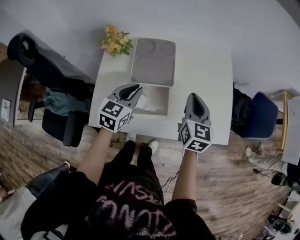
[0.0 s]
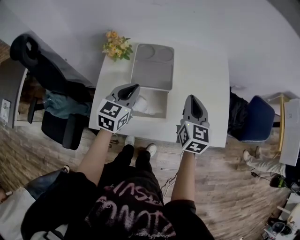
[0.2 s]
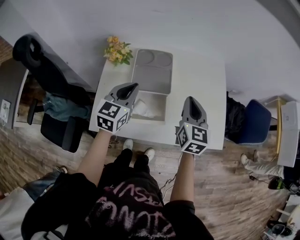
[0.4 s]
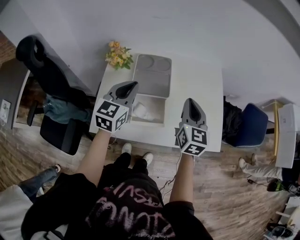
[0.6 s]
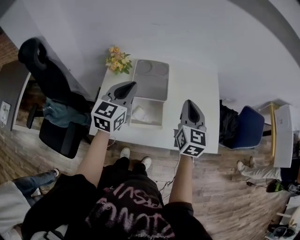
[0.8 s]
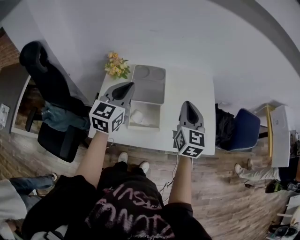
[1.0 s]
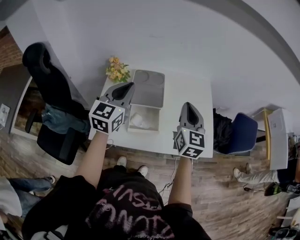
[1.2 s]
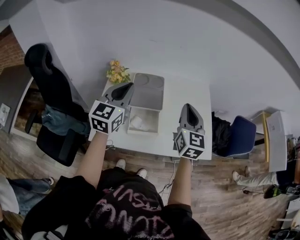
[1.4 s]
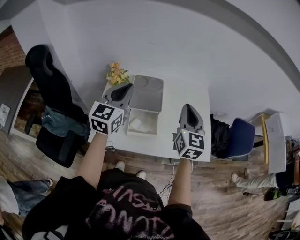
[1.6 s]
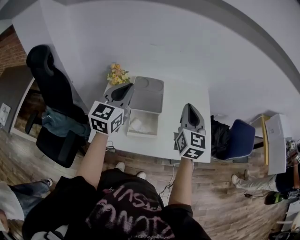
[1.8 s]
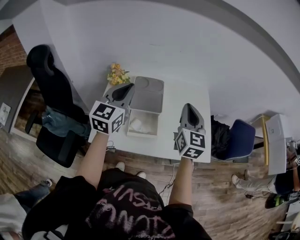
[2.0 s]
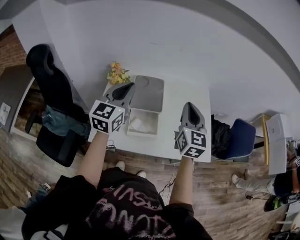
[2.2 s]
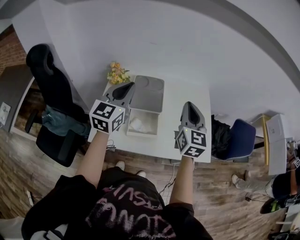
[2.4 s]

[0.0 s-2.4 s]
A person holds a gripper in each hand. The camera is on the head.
0.0 to 1.2 s: The grippers both shift upward by approximately 15 cm. The left gripper turns by some 20 degrees.
1.2 to 2.4 s: The grippers make only small movements.

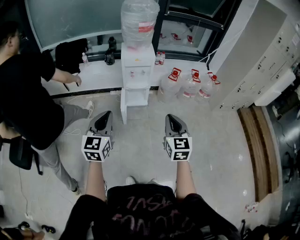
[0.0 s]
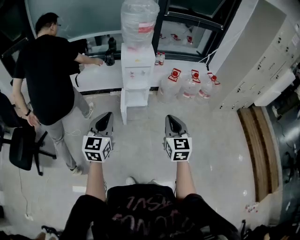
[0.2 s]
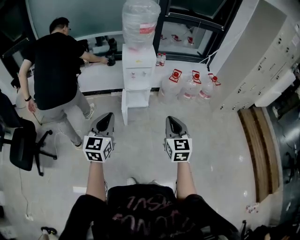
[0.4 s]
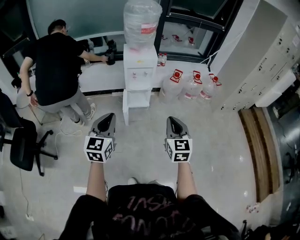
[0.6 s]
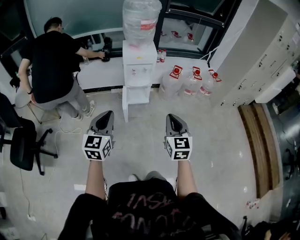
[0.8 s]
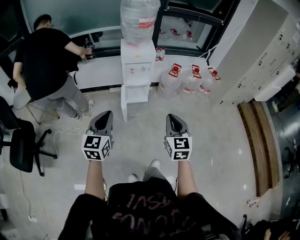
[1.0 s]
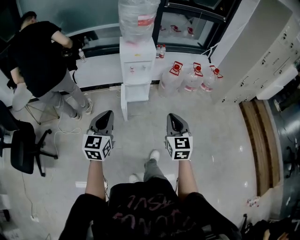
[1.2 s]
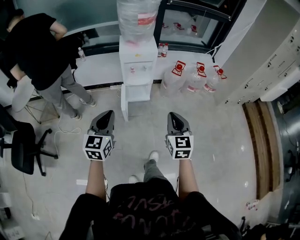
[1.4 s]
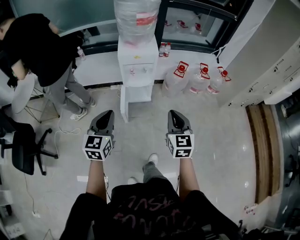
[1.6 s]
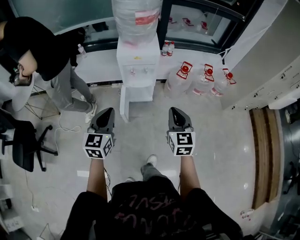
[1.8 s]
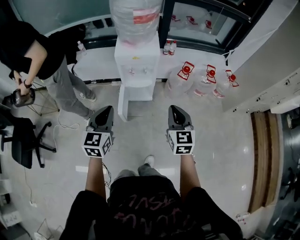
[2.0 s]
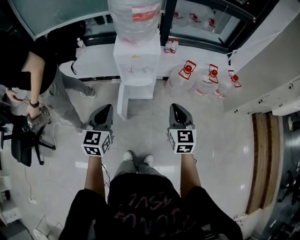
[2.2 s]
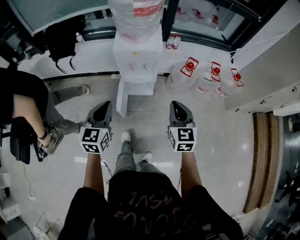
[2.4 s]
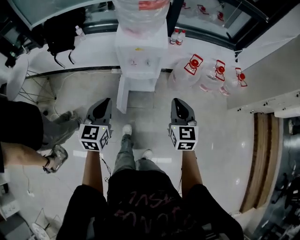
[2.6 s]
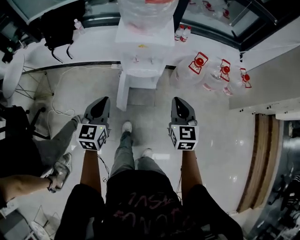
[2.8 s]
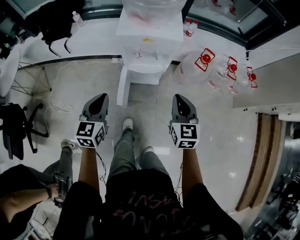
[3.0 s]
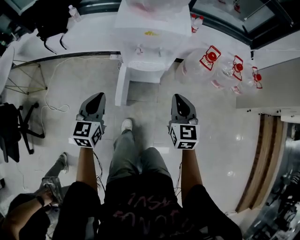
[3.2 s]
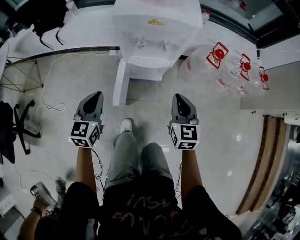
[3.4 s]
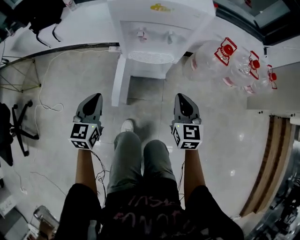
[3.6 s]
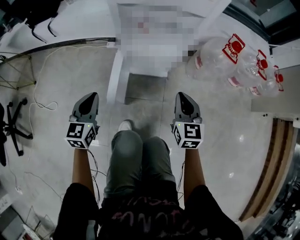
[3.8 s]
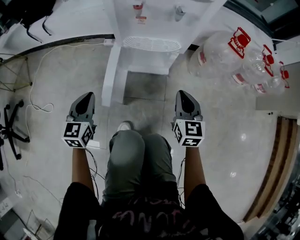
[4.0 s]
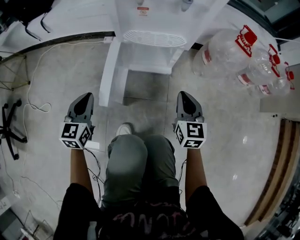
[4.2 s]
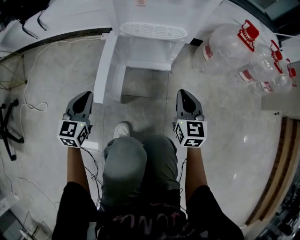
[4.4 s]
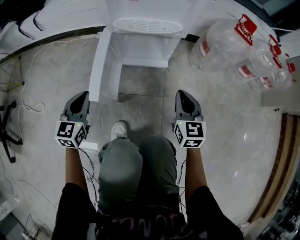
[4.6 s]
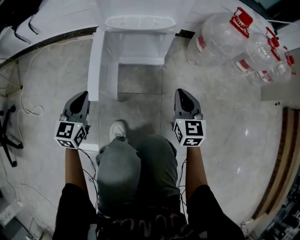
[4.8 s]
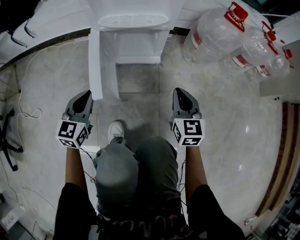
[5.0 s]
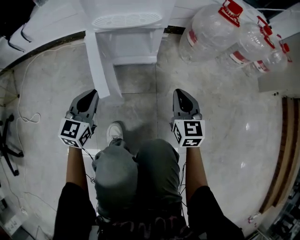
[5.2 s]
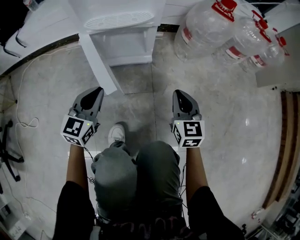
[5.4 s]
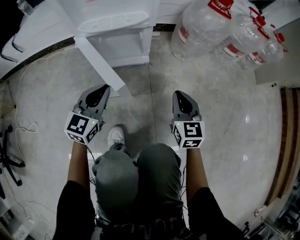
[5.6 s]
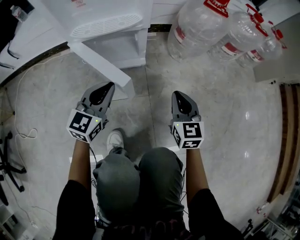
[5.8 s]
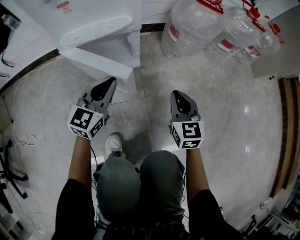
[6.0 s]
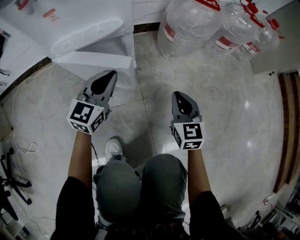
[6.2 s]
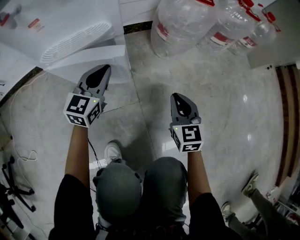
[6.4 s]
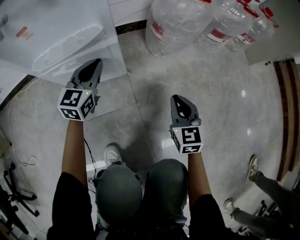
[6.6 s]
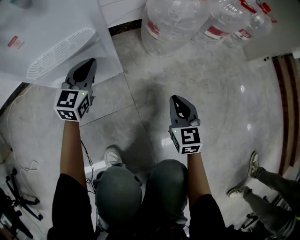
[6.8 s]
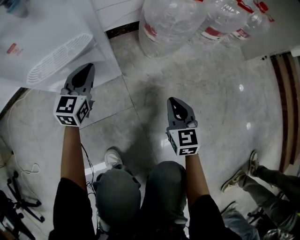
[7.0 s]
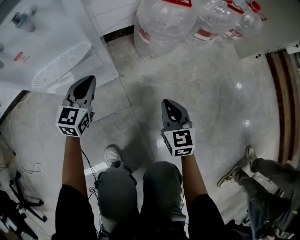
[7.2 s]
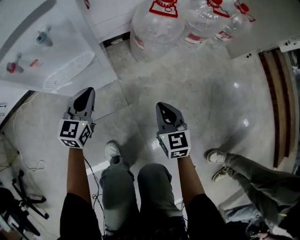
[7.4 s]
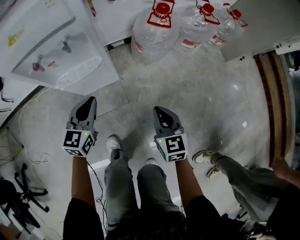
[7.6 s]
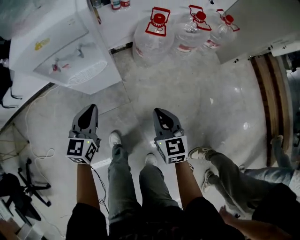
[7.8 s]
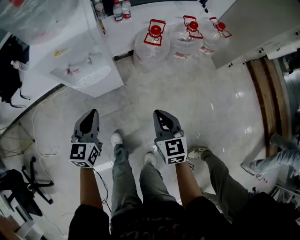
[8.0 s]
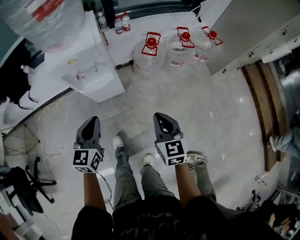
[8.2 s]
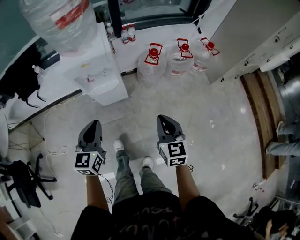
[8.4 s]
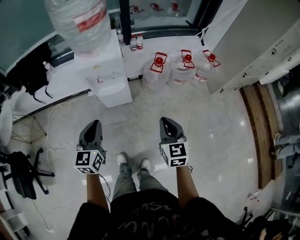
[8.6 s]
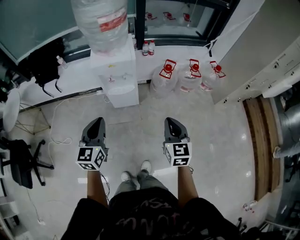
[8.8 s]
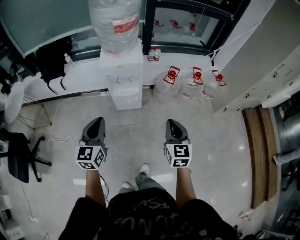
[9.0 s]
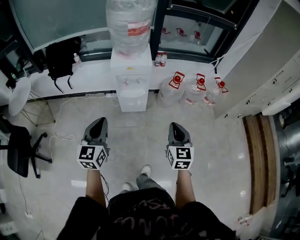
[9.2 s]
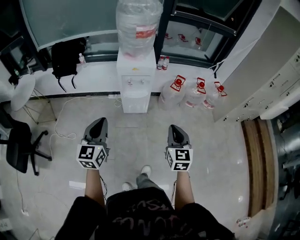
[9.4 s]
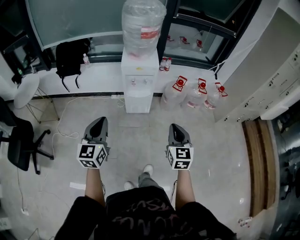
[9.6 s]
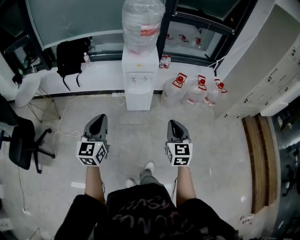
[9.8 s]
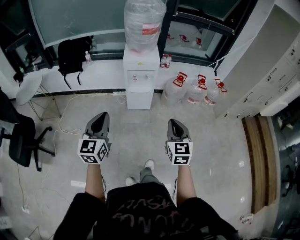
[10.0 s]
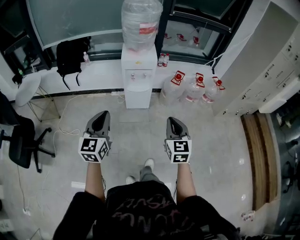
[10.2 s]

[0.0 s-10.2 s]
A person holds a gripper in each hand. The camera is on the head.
0.0 to 1.4 s: Both grippers travel together forward, approximately 10 cm.
1.4 to 3.0 s: Both grippers travel together forward and downward, roughly 35 cm.
3.0 to 4.4 s: The two grippers go about 50 cm downward.
4.4 to 5.8 s: The left gripper heads to the right and forward, covering some 20 cm, and changes its angle by about 30 degrees. The right gripper travels to the right and downward by some 10 cm.
5.8 to 7.2 s: The right gripper shifts about 5 cm to the right. Meanwhile the left gripper is displaced forward by about 15 cm.
7.2 to 8.8 s: The left gripper goes approximately 80 cm upward and backward, and swivels roughly 30 degrees. The right gripper is displaced upward by roughly 70 cm.
8.8 to 10.2 s: The right gripper travels backward, to the left and upward by some 25 cm. Meanwhile the left gripper shifts about 25 cm backward and to the left.

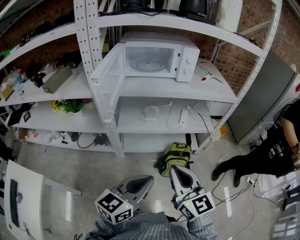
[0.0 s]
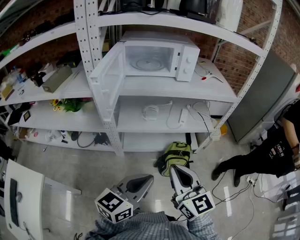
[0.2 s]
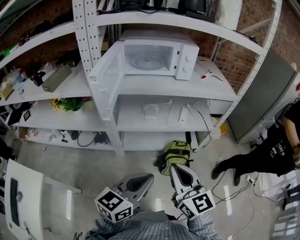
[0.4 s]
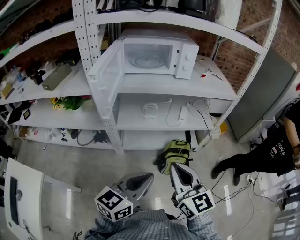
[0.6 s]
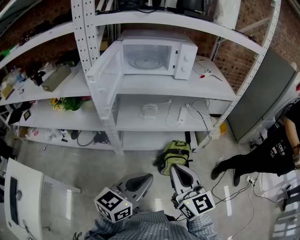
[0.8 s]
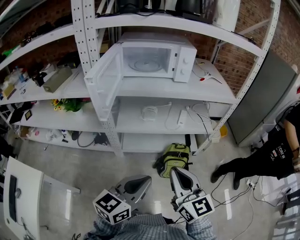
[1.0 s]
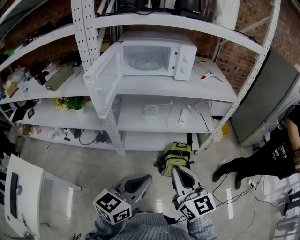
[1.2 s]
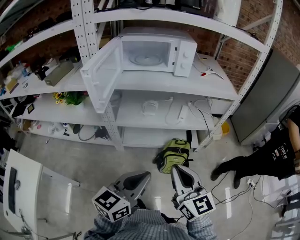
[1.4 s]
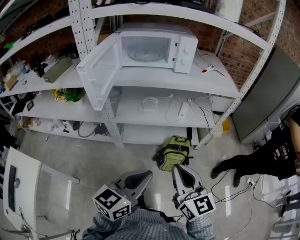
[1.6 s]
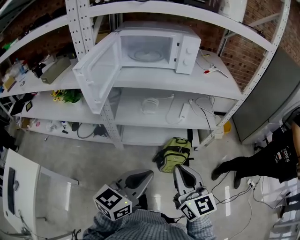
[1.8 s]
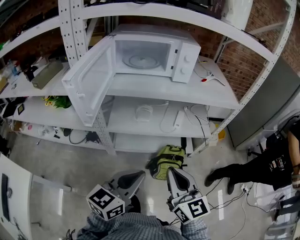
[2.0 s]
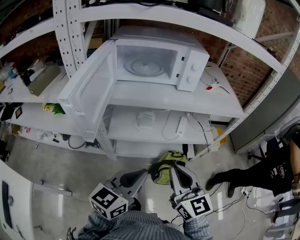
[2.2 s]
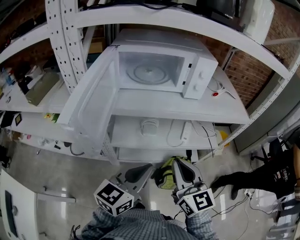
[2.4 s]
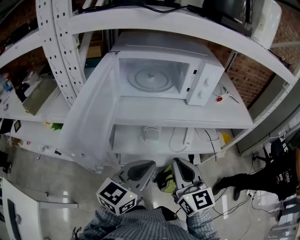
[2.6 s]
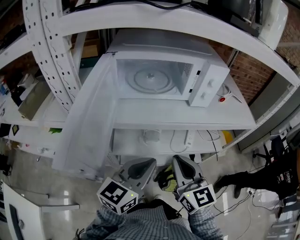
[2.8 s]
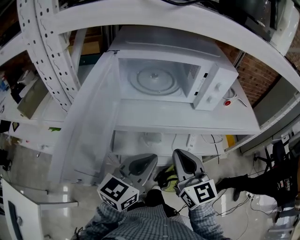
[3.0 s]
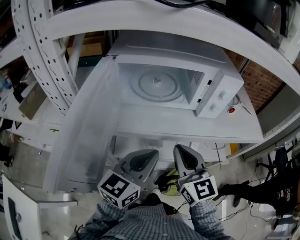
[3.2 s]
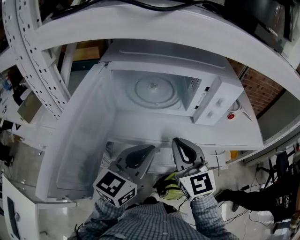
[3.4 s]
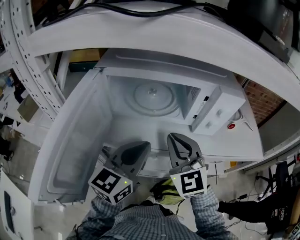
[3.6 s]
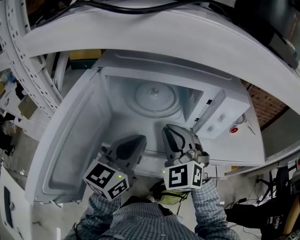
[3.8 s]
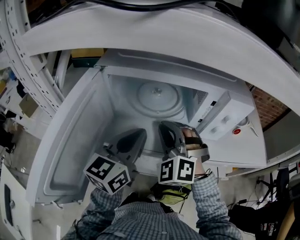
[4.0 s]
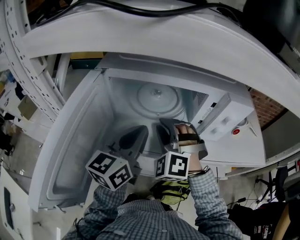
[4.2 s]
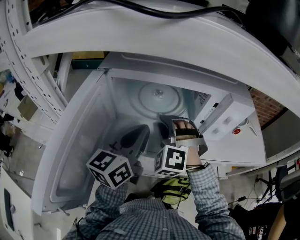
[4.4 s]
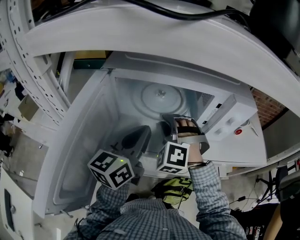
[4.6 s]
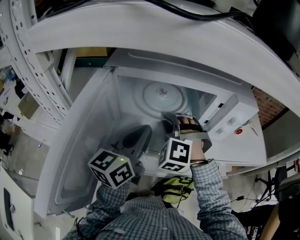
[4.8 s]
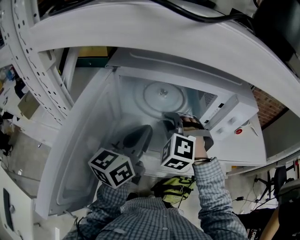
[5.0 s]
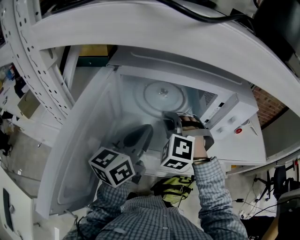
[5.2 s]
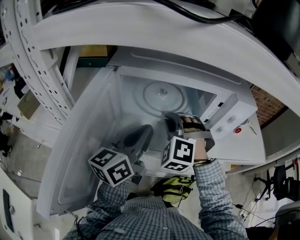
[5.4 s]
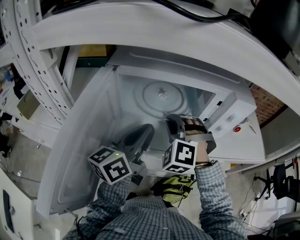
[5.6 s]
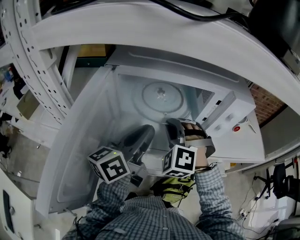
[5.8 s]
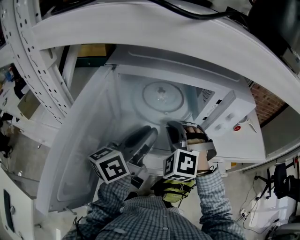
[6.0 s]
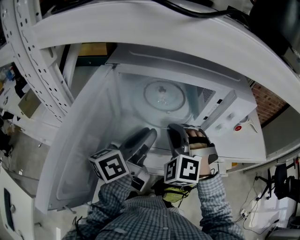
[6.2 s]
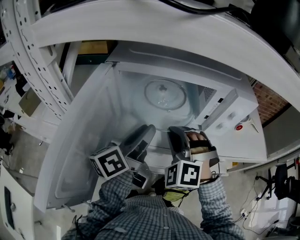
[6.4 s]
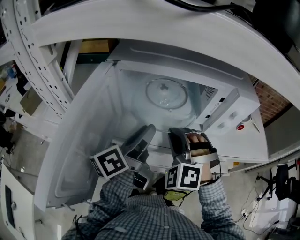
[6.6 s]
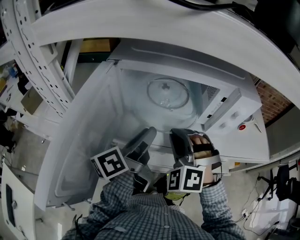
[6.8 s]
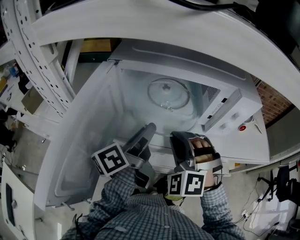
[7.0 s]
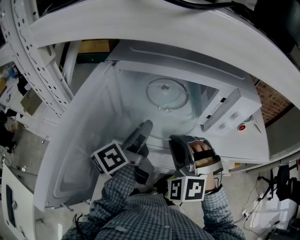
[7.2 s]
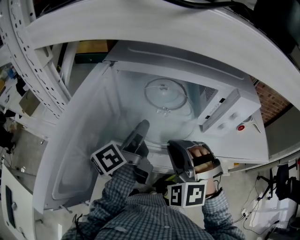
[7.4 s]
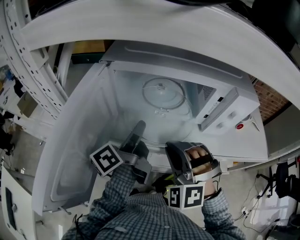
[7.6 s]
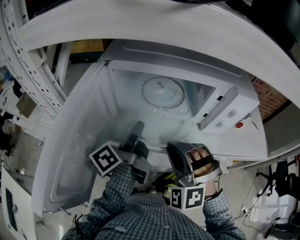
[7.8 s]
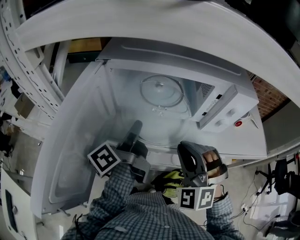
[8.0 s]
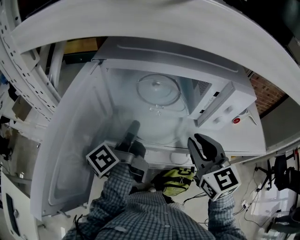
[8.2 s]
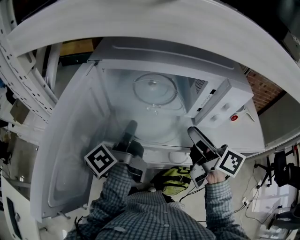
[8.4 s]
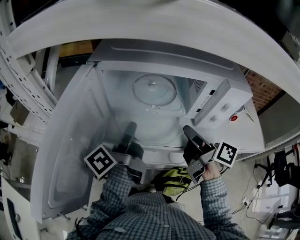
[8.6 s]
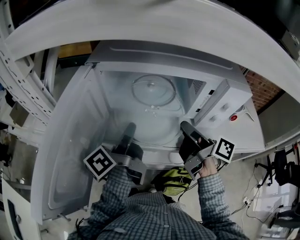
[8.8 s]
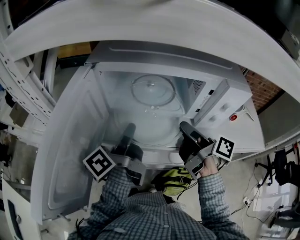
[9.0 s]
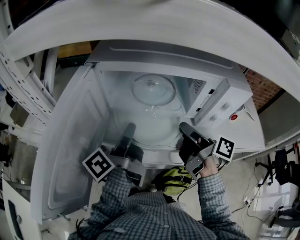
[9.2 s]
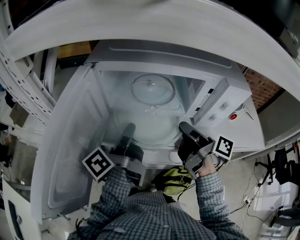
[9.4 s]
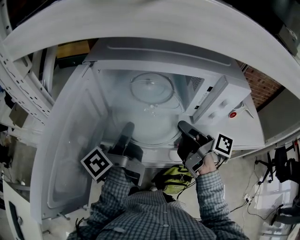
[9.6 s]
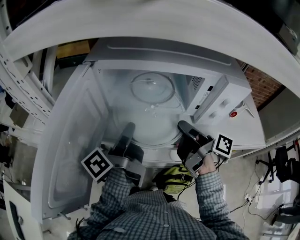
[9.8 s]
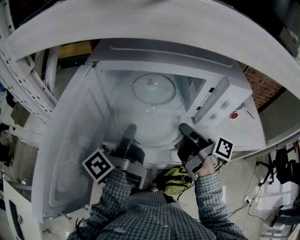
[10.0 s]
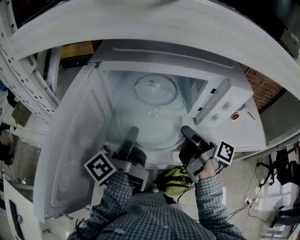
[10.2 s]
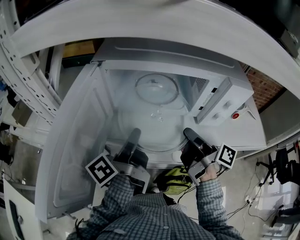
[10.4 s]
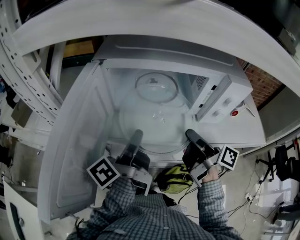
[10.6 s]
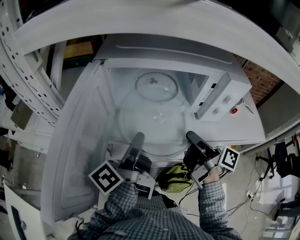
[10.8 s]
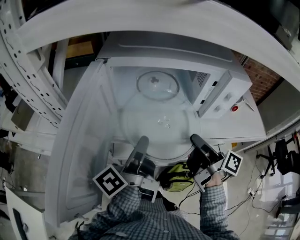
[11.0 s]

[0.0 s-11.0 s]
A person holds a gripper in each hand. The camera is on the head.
0.0 to 1.6 s: The two grippers go approximately 5 cm to the right.
1.6 to 3.2 s: The two grippers travel together, forward, roughly 40 cm.
3.2 to 4.8 s: Both grippers travel together forward, approximately 15 cm. The left gripper rotates approximately 20 degrees; the right gripper rotates around the line of its fingers by approximately 70 degrees, counterclockwise from behind.
4.8 to 6.2 s: The left gripper swivels about 30 degrees, and opens its fingers; the right gripper goes about 5 cm backward.
6.2 to 7.8 s: The right gripper is displaced backward by approximately 5 cm, while the left gripper turns by approximately 30 degrees.
7.8 to 9.4 s: The right gripper moves to the right and forward, some 10 cm, and rolls clockwise, seen from behind, by roughly 150 degrees.
9.4 to 11.0 s: The two grippers go approximately 5 cm backward.
